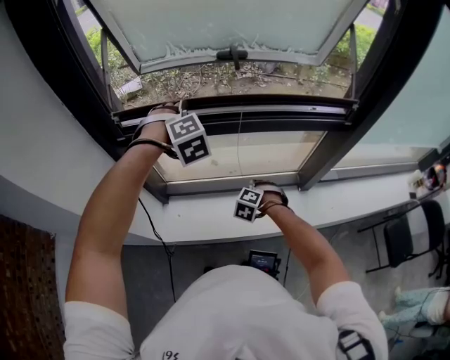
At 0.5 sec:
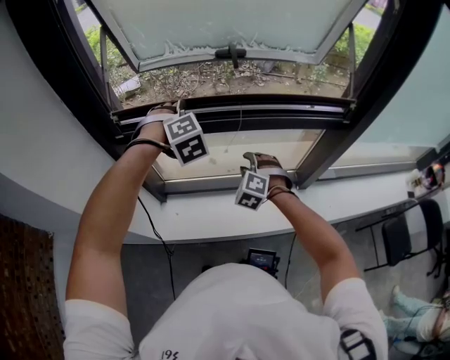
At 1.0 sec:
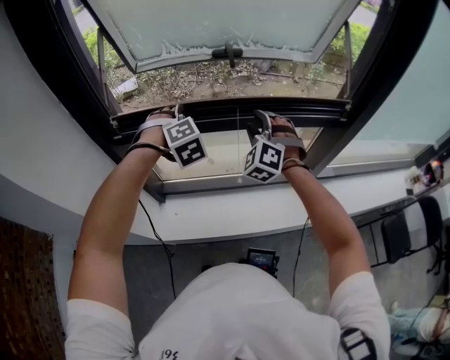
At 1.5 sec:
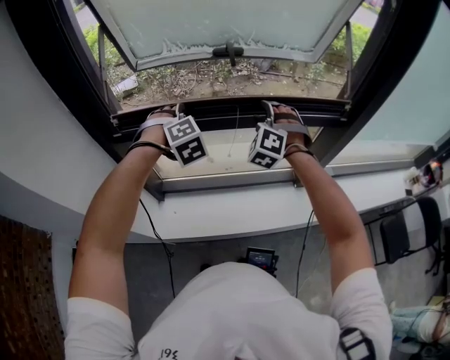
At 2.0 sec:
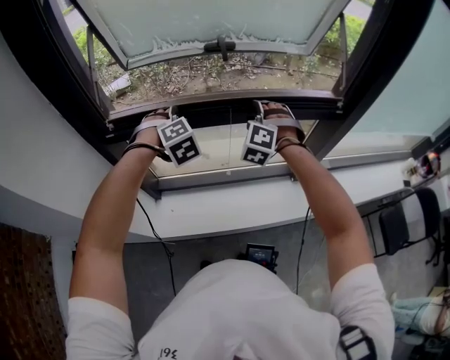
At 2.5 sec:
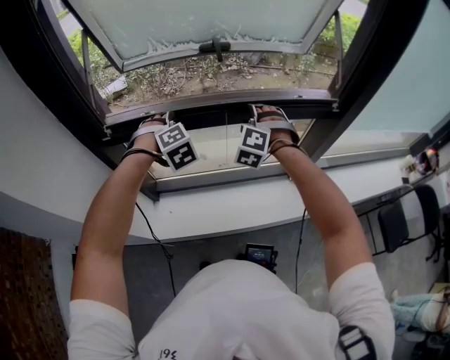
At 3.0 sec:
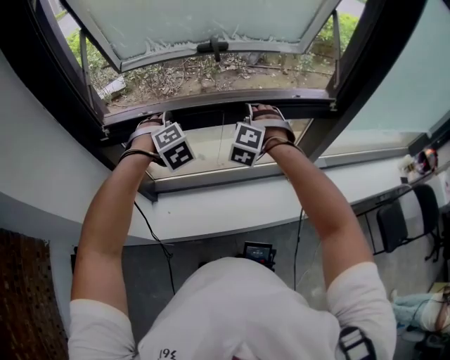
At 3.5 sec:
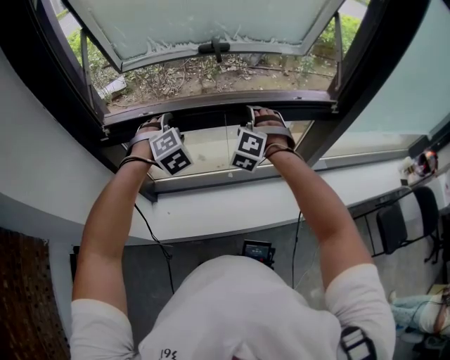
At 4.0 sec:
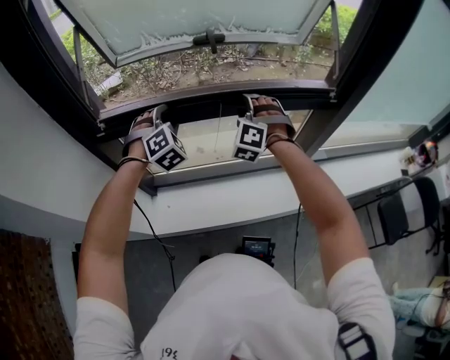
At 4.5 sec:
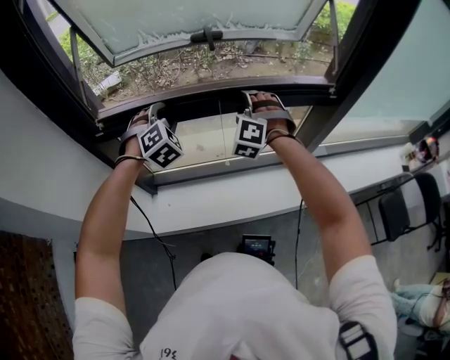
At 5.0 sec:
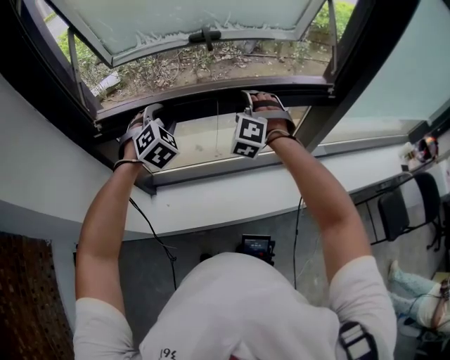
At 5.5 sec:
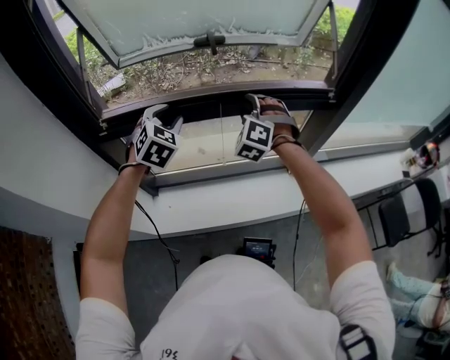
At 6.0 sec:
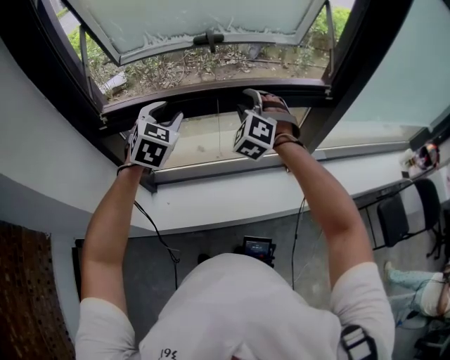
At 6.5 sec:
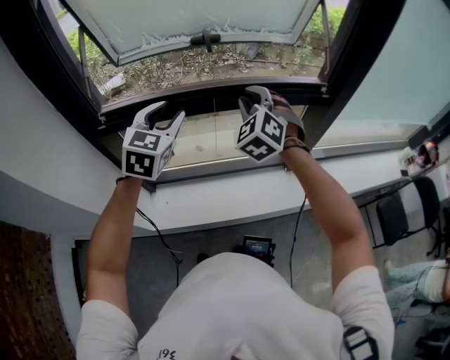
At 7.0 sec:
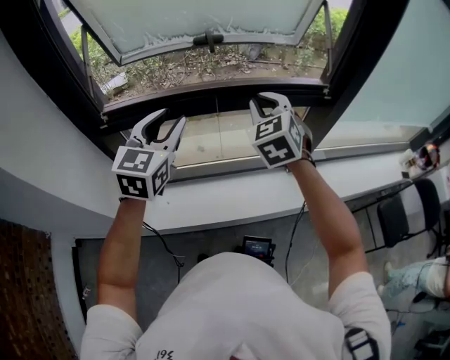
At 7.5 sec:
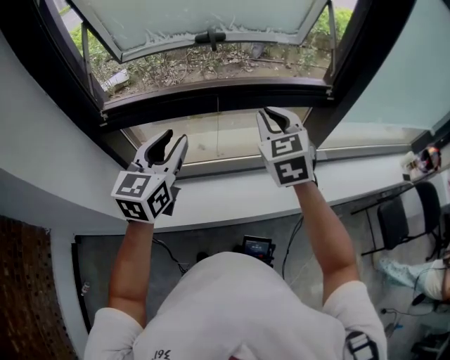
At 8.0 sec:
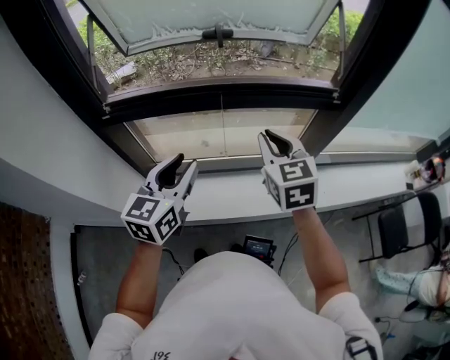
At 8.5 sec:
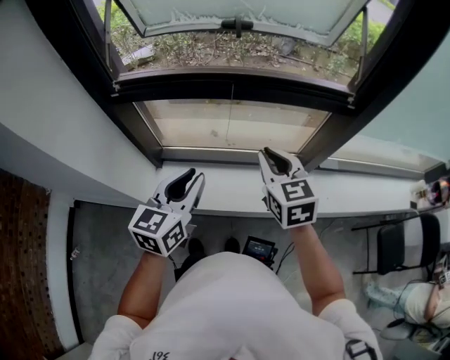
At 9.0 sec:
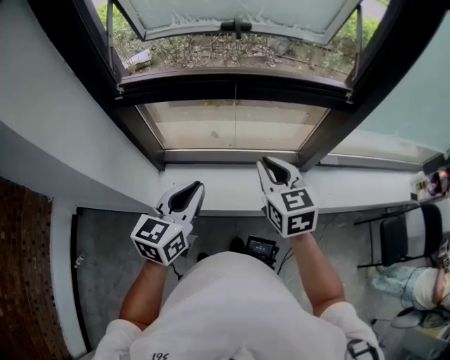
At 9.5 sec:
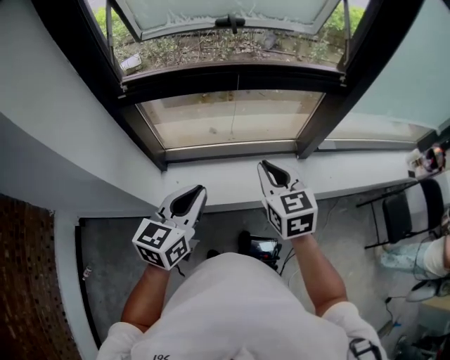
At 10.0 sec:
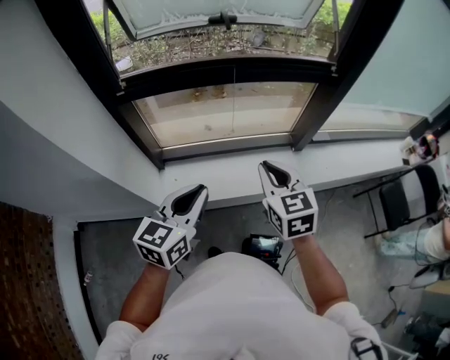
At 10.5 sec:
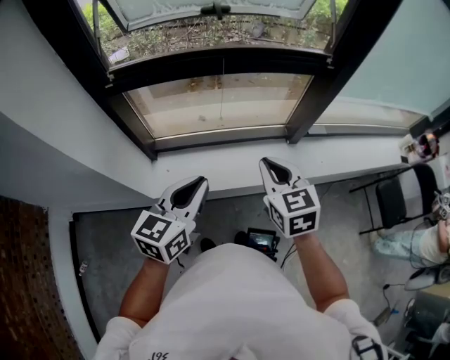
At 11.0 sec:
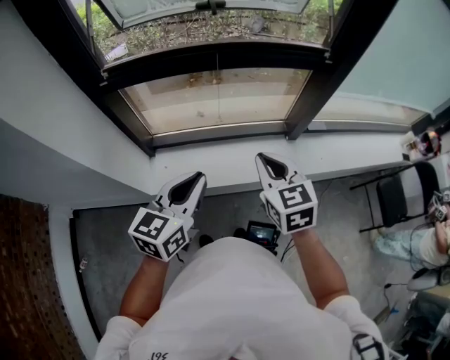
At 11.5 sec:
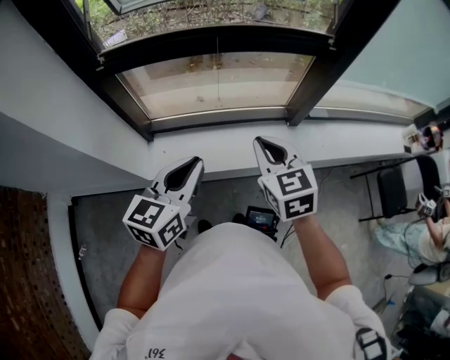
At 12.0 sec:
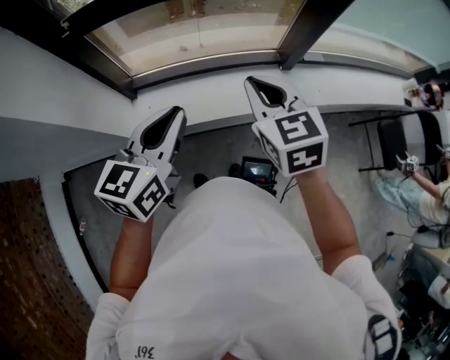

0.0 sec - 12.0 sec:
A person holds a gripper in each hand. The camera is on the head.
0.0 sec - 2.0 sec: The right gripper goes approximately 30 cm upward and forward, points its fingers approximately 30 degrees further upward, and opens its fingers. The left gripper changes place by approximately 5 cm.
2.0 sec - 4.0 sec: There are only small adjustments of the grippers.
4.0 sec - 6.0 sec: The two grippers go approximately 5 cm upward. The left gripper rotates roughly 30 degrees.
6.0 sec - 8.0 sec: The right gripper goes roughly 15 cm backward and to the right, rotates around the line of its fingers by some 50 degrees, clockwise from behind, and closes up; the left gripper is displaced backward by roughly 15 cm, and swivels roughly 40 degrees.
8.0 sec - 10.0 sec: The grippers both shift backward by some 15 cm. The left gripper closes its fingers.
10.0 sec - 12.0 sec: The left gripper moves to the right, about 5 cm.

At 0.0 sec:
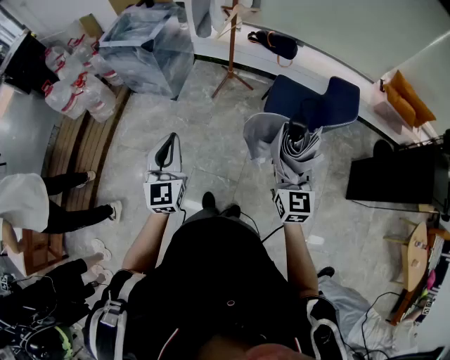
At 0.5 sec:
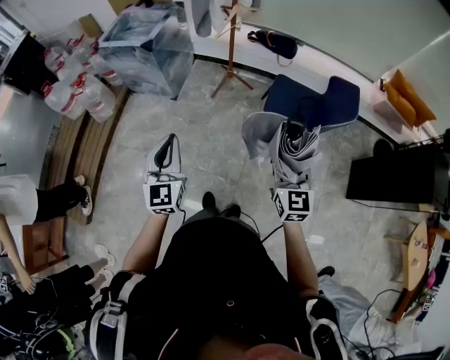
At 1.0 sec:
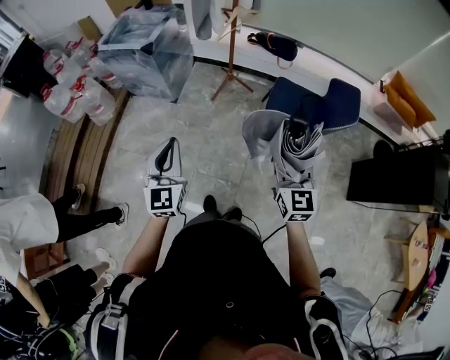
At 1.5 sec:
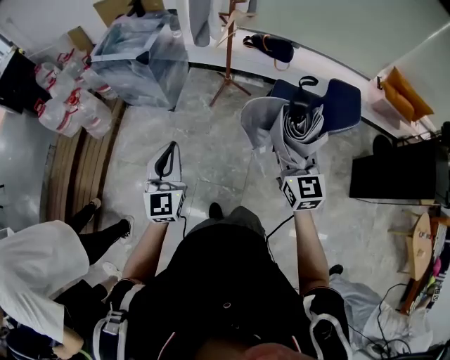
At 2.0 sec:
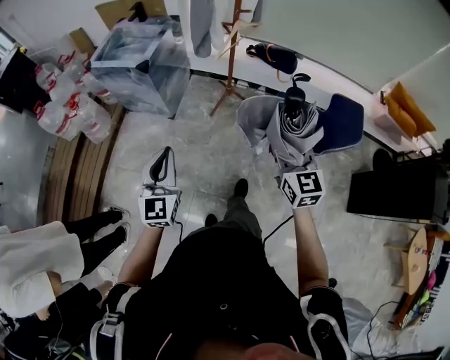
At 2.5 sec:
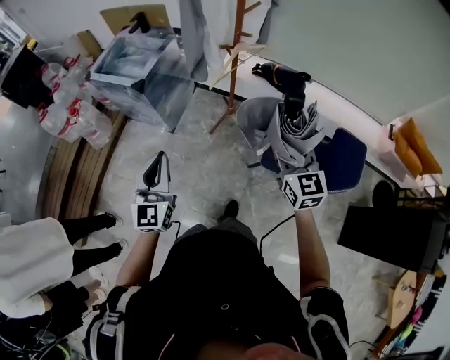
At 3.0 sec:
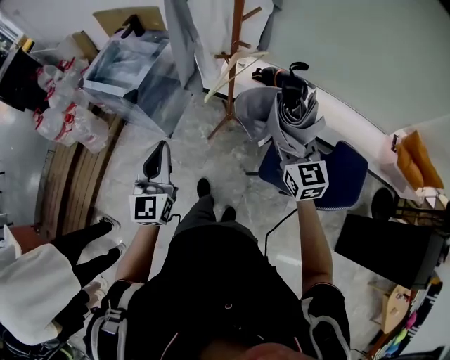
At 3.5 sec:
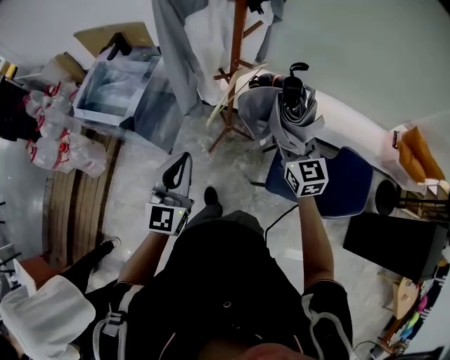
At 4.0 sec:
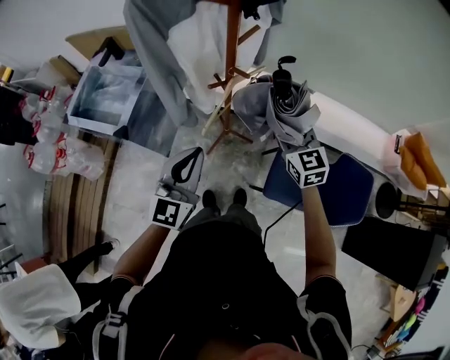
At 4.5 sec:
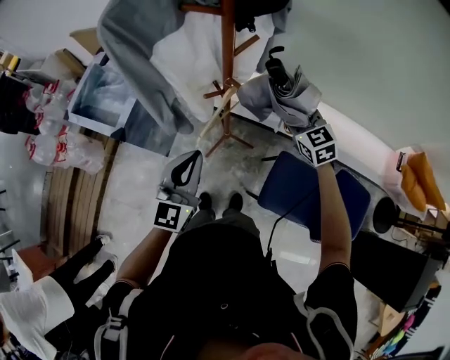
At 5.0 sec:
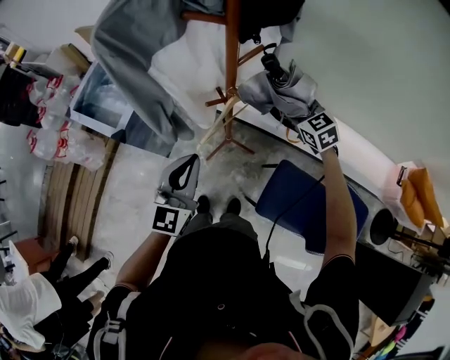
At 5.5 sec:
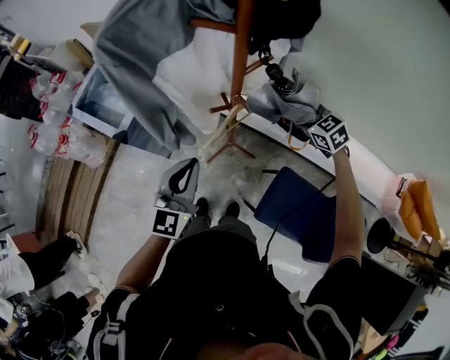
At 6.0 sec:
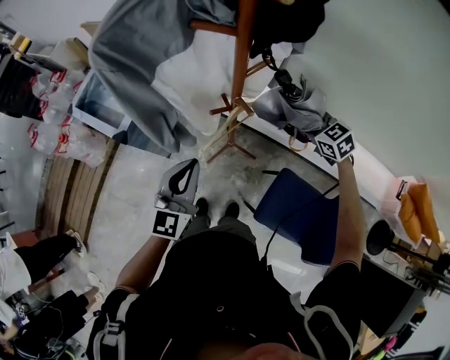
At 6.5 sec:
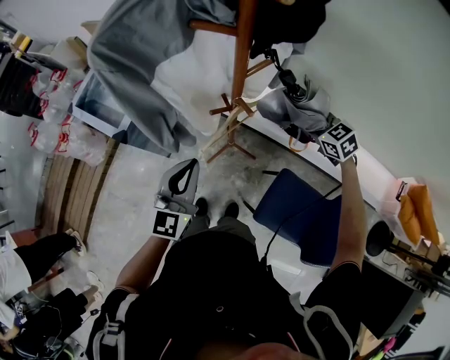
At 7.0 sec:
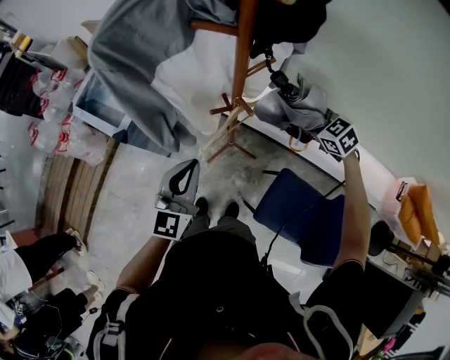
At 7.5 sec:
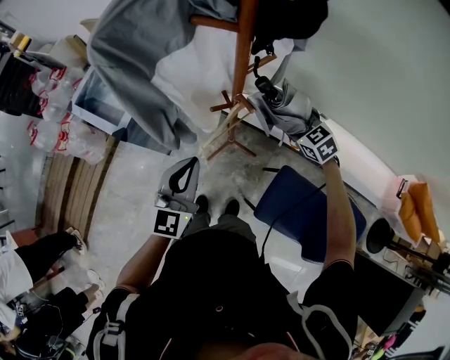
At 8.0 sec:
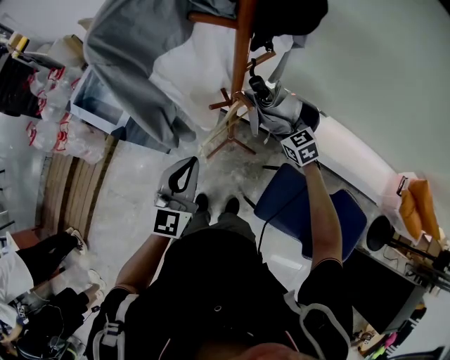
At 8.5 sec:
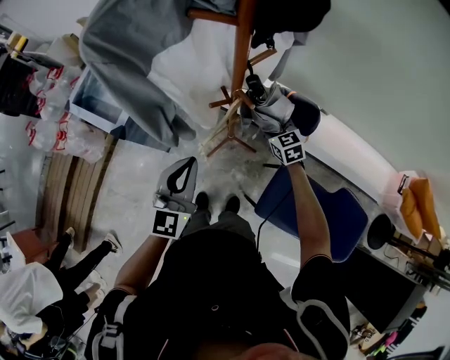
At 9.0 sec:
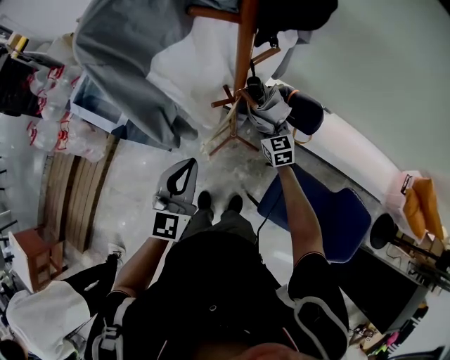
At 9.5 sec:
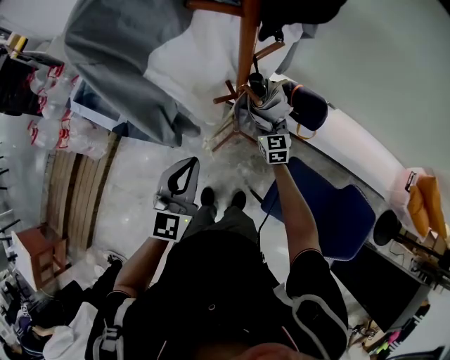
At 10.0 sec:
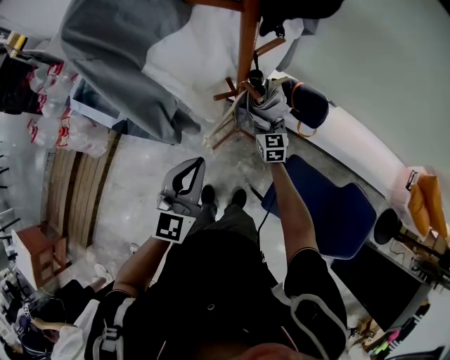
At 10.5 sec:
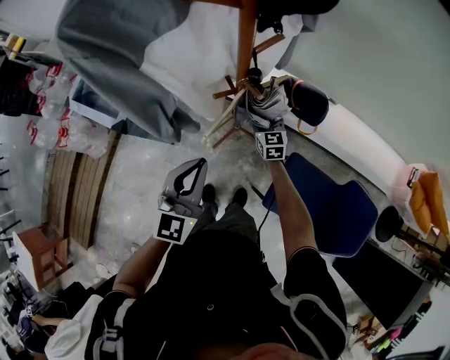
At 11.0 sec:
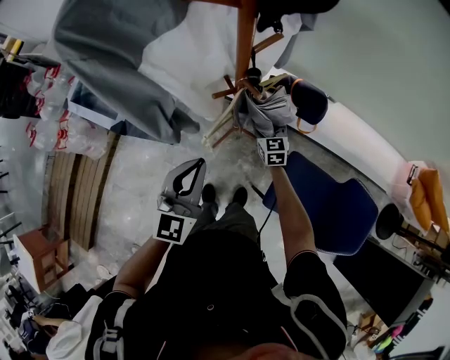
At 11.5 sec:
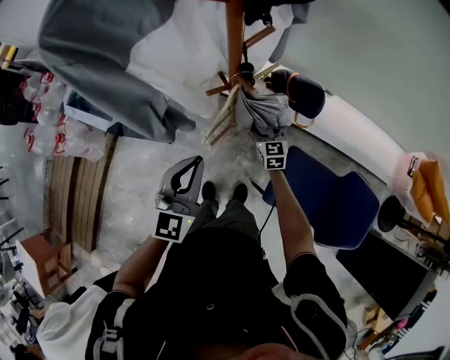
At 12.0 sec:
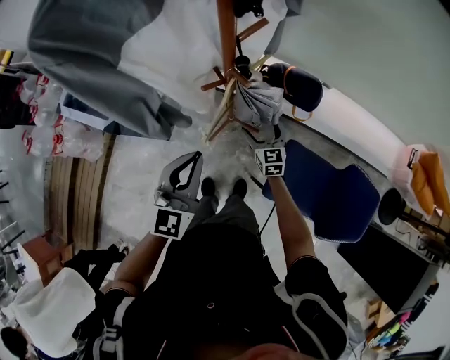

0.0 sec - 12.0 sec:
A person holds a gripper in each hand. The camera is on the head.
0.0 sec - 2.0 sec: The grippers both shift forward by roughly 15 cm.
2.0 sec - 4.0 sec: Both grippers are carried forward, approximately 50 cm.
4.0 sec - 6.0 sec: The right gripper goes about 20 cm forward, to the right and downward, and swivels about 40 degrees; the left gripper heads forward, covering approximately 10 cm.
6.0 sec - 8.0 sec: The right gripper shifts approximately 10 cm to the left and downward.
8.0 sec - 10.0 sec: The right gripper is displaced downward by roughly 10 cm, and rotates some 30 degrees.
10.0 sec - 12.0 sec: The right gripper heads backward, covering about 10 cm, and opens its fingers.

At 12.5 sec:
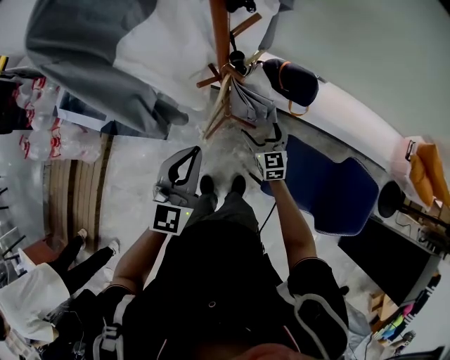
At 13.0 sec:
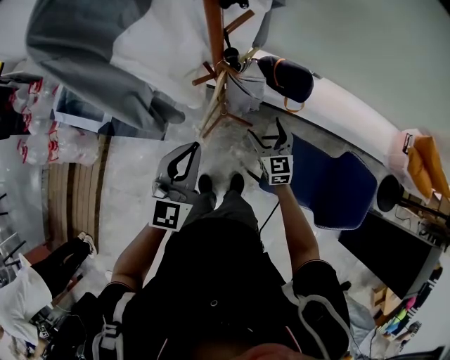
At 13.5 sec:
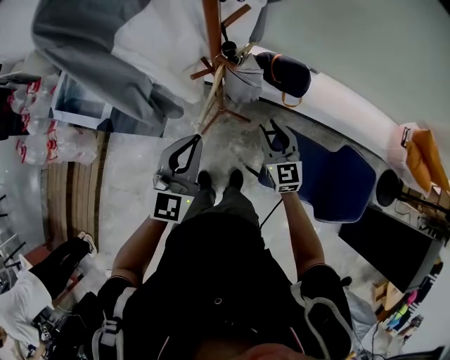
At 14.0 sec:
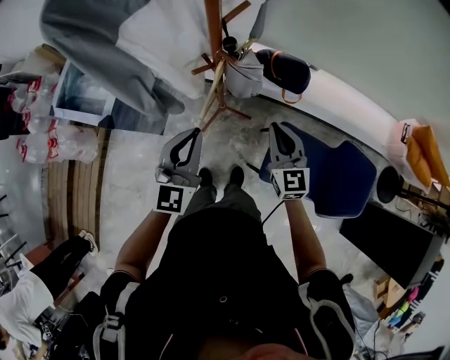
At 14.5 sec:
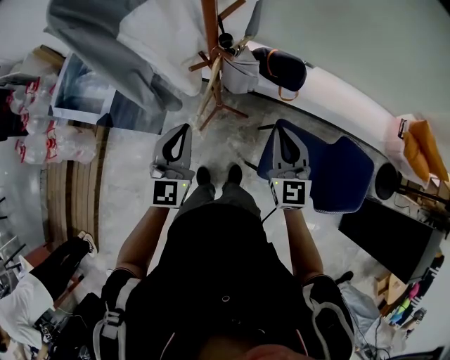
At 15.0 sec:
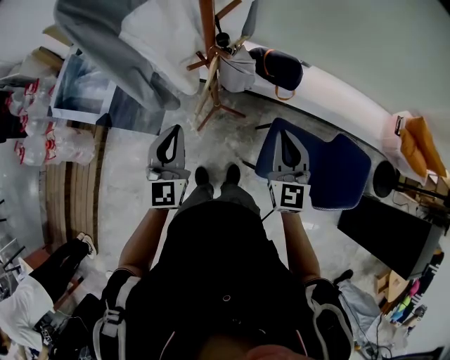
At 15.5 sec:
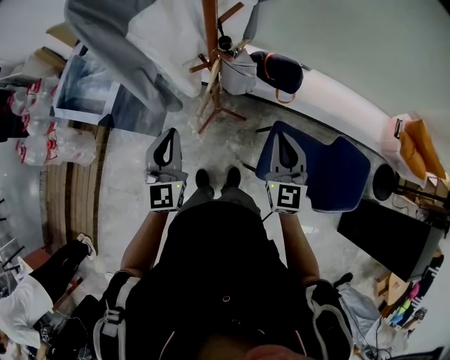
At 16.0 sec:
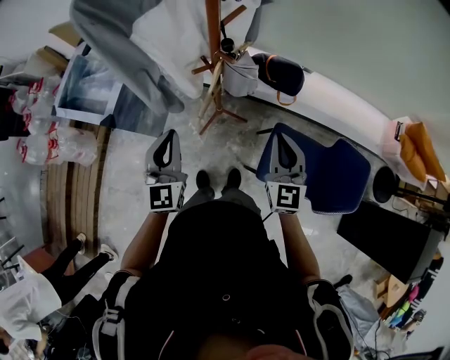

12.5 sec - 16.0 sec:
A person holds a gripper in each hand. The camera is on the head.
12.5 sec - 14.5 sec: The right gripper shifts about 25 cm upward and backward, and closes its fingers.
14.5 sec - 16.0 sec: The grippers move only a little.
